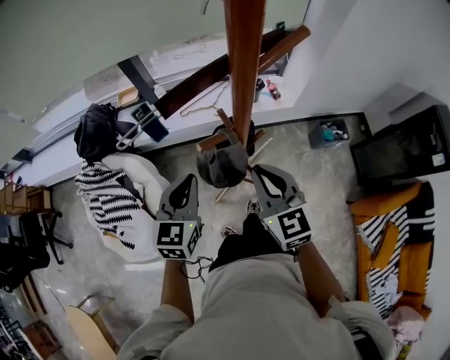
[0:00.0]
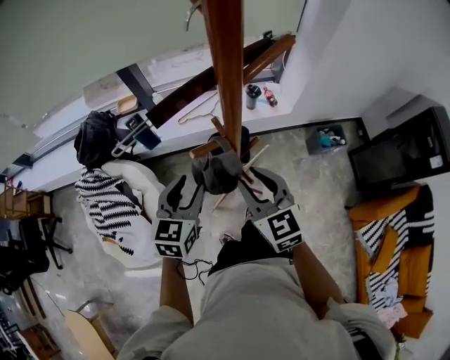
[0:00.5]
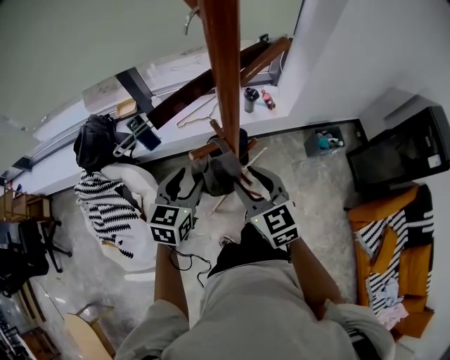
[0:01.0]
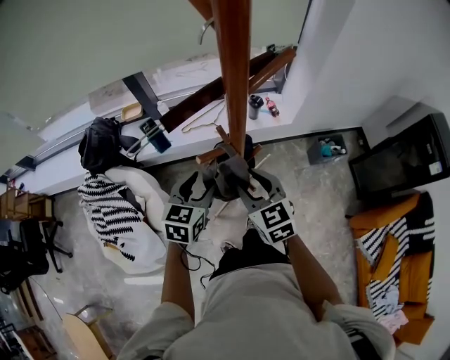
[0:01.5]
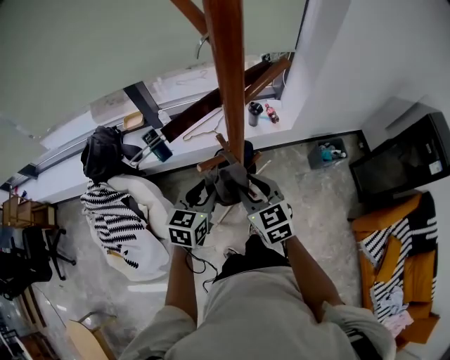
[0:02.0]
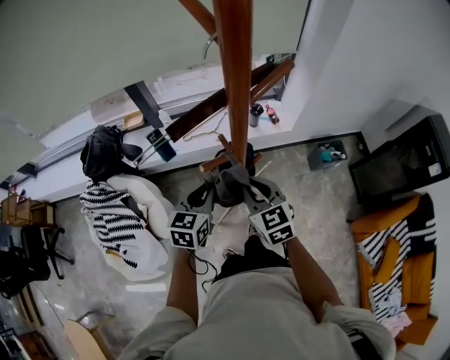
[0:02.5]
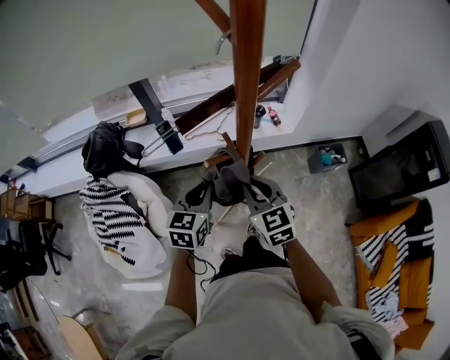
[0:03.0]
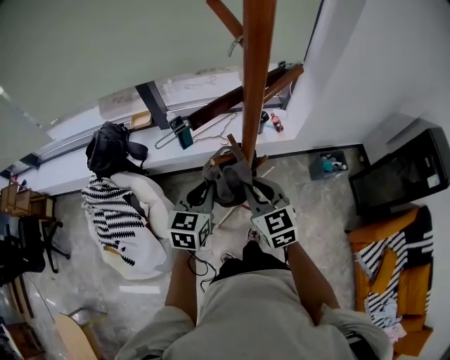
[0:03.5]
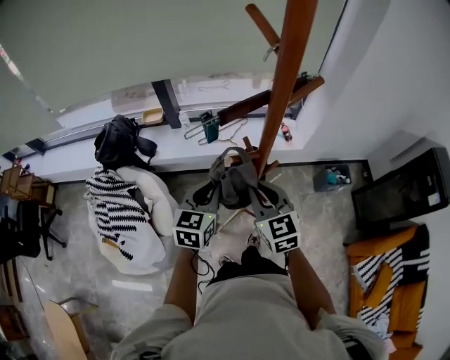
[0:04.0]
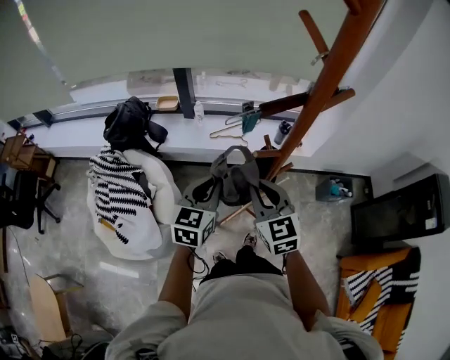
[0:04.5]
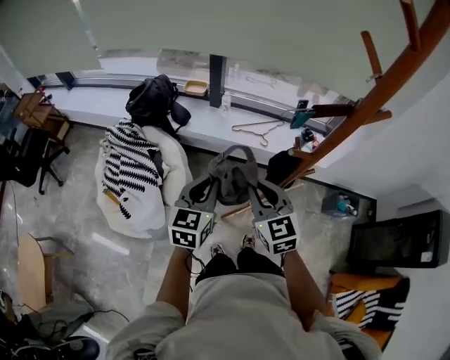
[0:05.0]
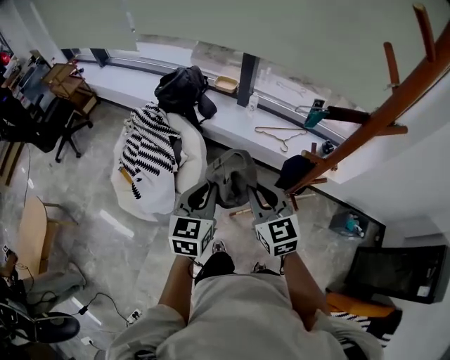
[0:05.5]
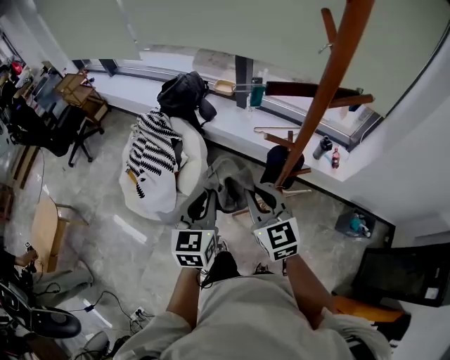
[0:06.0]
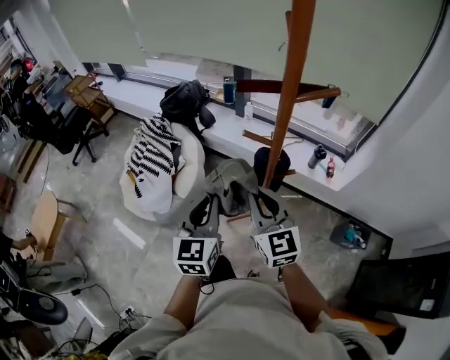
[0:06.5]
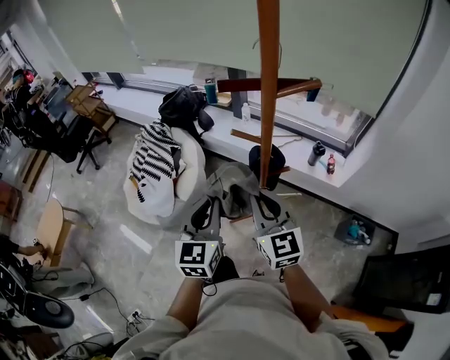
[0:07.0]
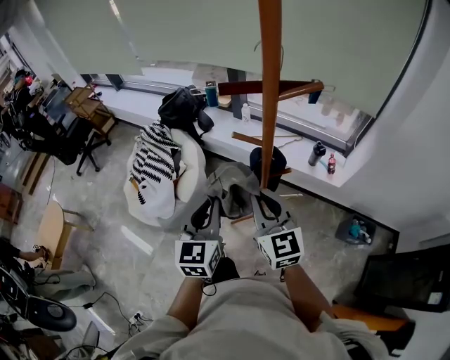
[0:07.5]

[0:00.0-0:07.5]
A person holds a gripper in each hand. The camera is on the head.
0:00.0 to 0:02.0: The left gripper shifts by approximately 5 cm, and opens. The right gripper ends up about 5 cm from where it was, and opens.
0:02.0 to 0:04.0: The right gripper is displaced upward by about 5 cm, and closes. The left gripper ends up roughly 5 cm from where it was, and closes its fingers.
0:04.0 to 0:05.5: The left gripper shifts by about 20 cm, and changes its angle by about 30 degrees; the right gripper moves some 15 cm, and swivels roughly 30 degrees.
0:05.5 to 0:07.5: Both grippers move to the right, backward and upward, roughly 20 cm.

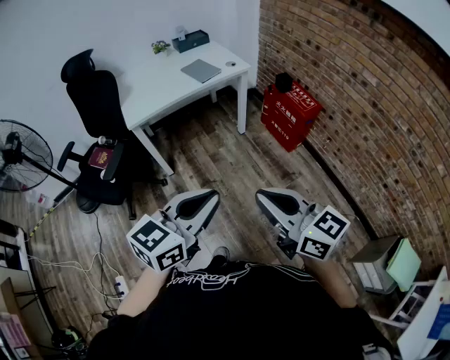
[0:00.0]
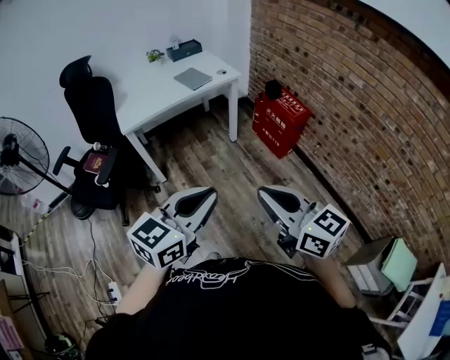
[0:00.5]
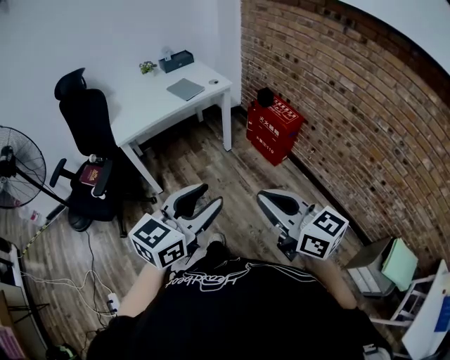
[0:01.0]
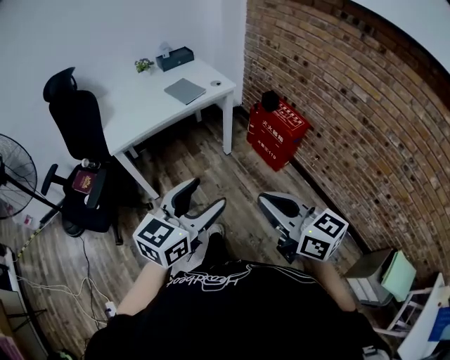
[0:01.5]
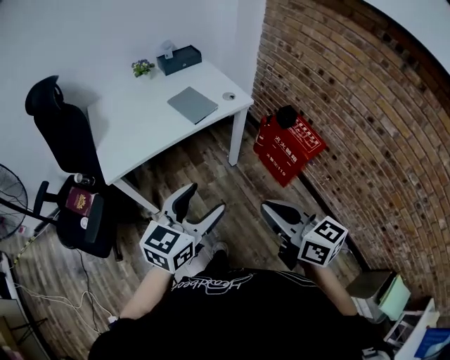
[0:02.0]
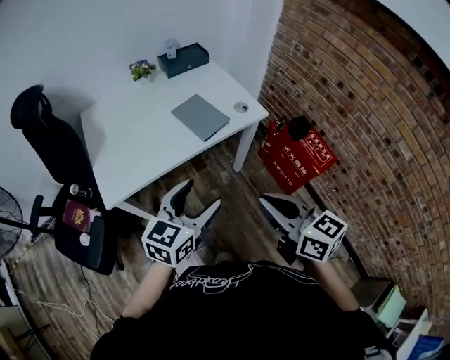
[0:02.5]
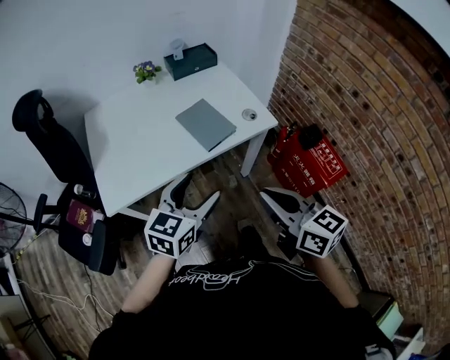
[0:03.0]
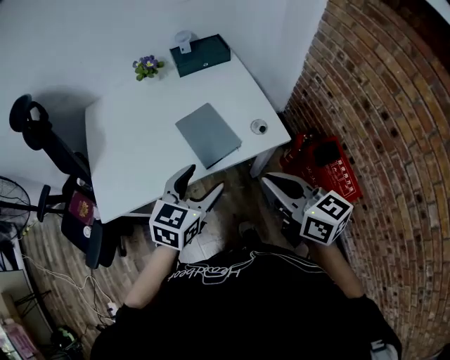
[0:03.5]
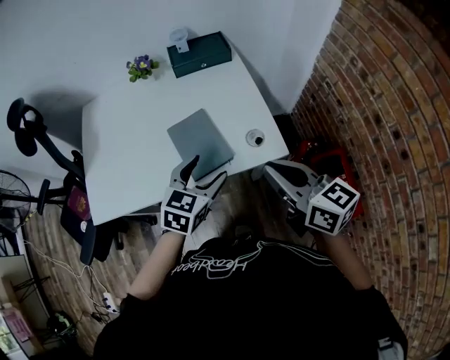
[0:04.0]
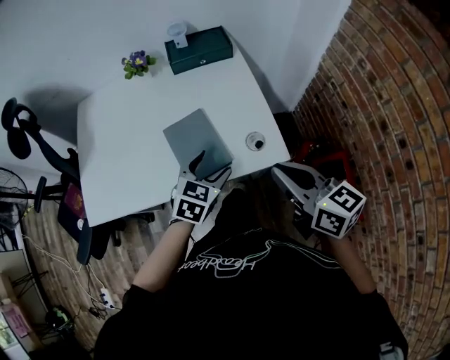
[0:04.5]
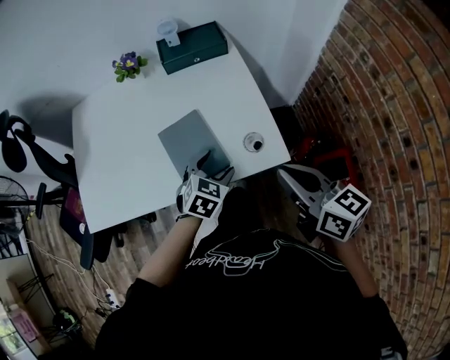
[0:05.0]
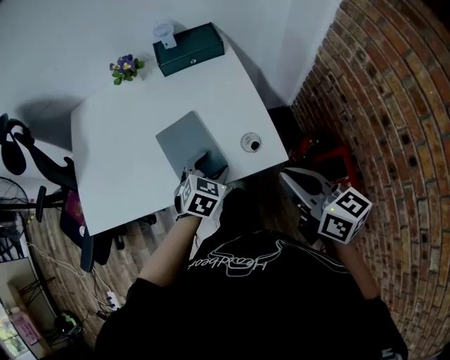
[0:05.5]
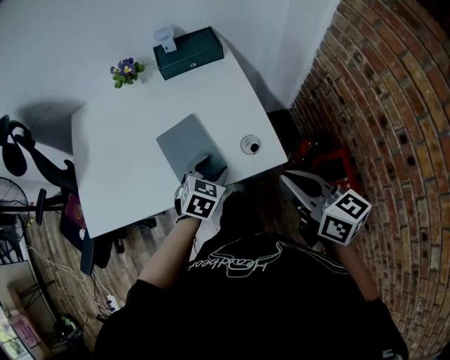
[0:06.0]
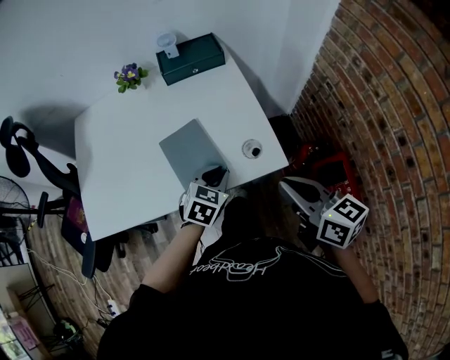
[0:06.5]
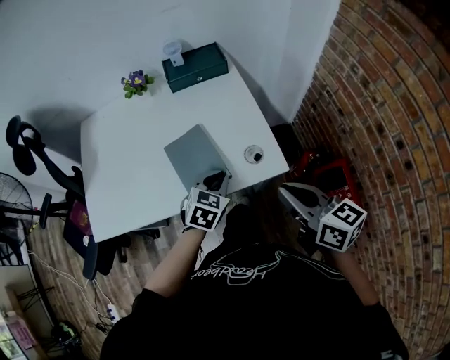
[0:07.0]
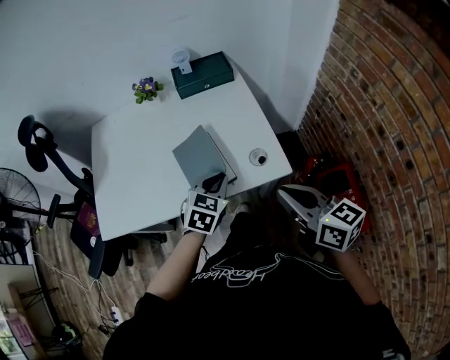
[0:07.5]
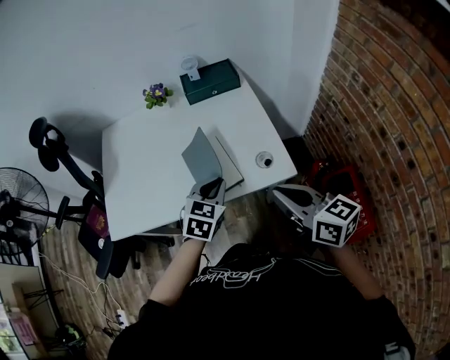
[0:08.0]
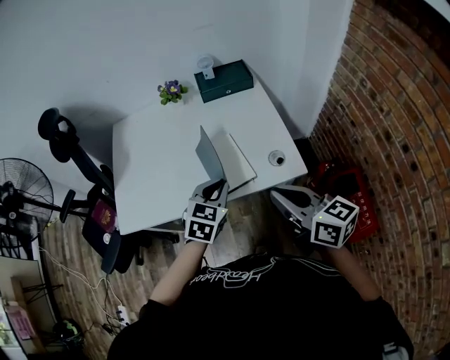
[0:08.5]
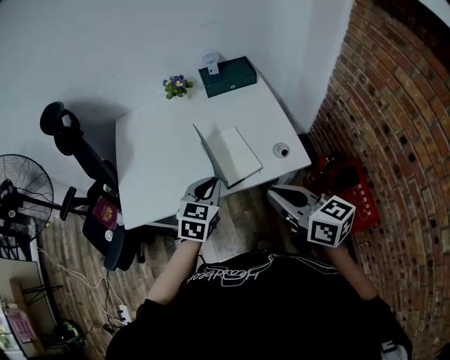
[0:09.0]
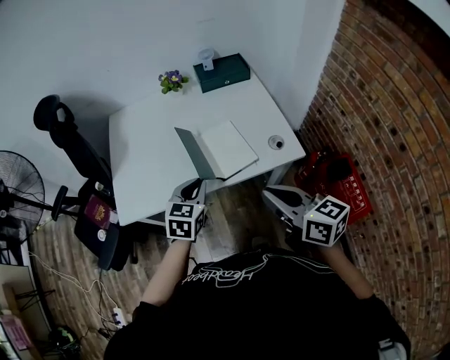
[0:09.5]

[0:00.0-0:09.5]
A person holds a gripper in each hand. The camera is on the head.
0:00.0 to 0:02.0: Both grippers travel together forward, roughly 30 cm. The left gripper opens its fingers.
0:02.0 to 0:04.0: The pair of grippers is taken forward, about 40 cm. The left gripper swivels some 30 degrees.
0:04.0 to 0:05.5: The left gripper goes roughly 10 cm downward and forward. The right gripper is displaced to the right by approximately 5 cm.
0:05.5 to 0:07.5: The left gripper travels upward by some 5 cm, and closes its fingers.
0:07.5 to 0:09.5: The two grippers go approximately 15 cm to the left.

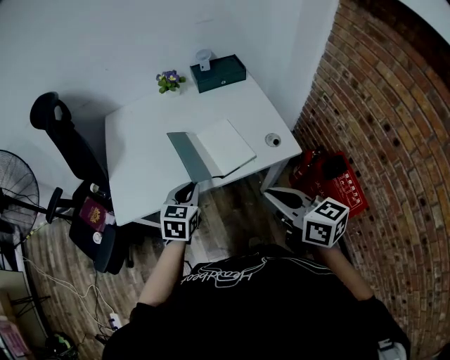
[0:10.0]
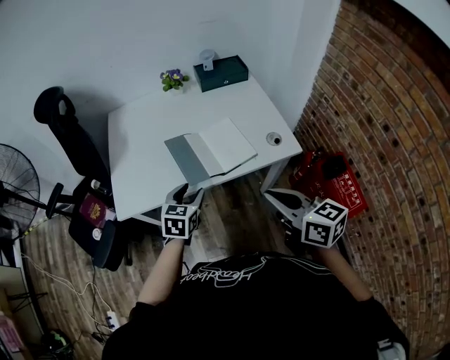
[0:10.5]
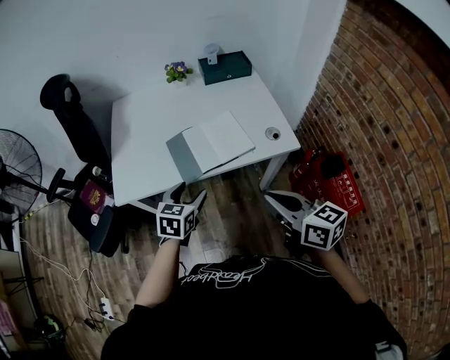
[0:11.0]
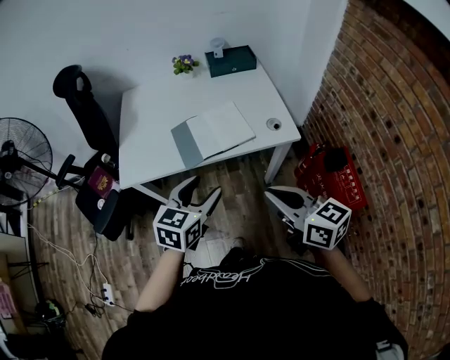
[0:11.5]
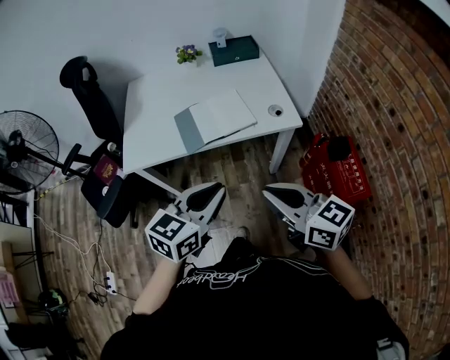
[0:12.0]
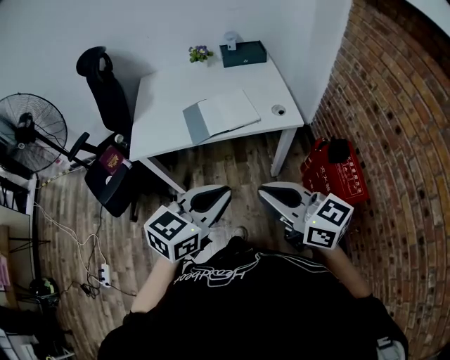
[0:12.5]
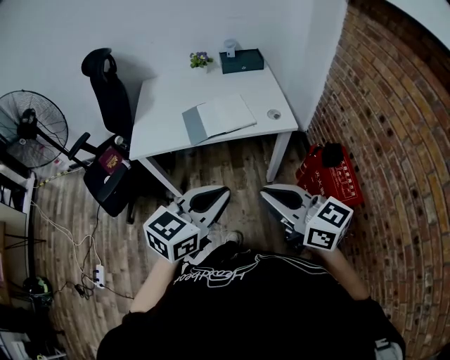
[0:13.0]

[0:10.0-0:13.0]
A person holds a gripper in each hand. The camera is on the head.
0:10.0 to 0:11.5: The right gripper travels backward by approximately 10 cm, while the left gripper heads backward and upward, covering some 15 cm, and opens its fingers.
0:11.5 to 0:13.0: The left gripper is displaced backward and upward by roughly 20 cm, and closes. Meanwhile the right gripper travels backward by roughly 10 cm.

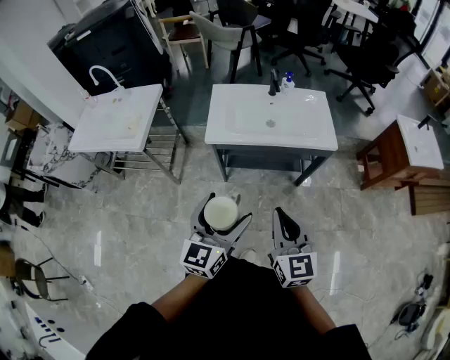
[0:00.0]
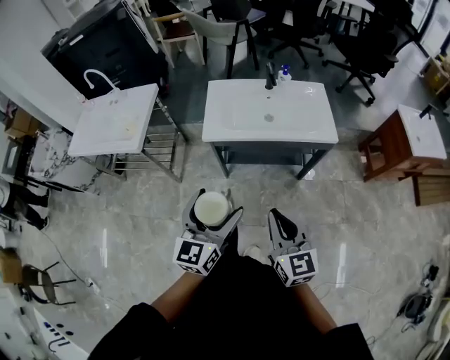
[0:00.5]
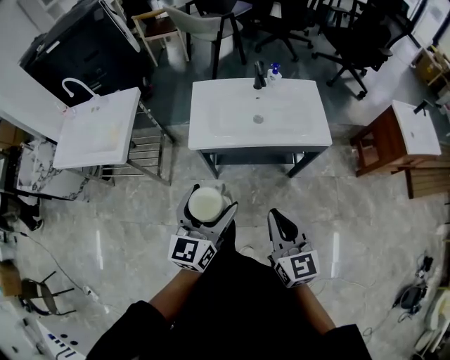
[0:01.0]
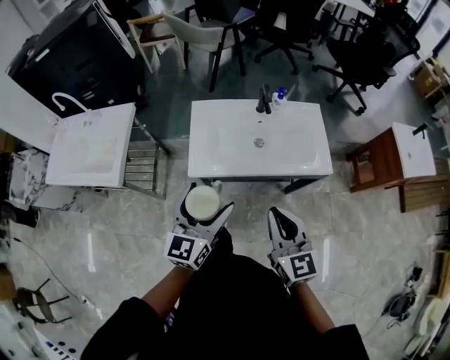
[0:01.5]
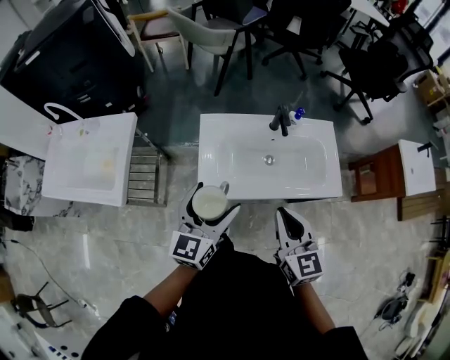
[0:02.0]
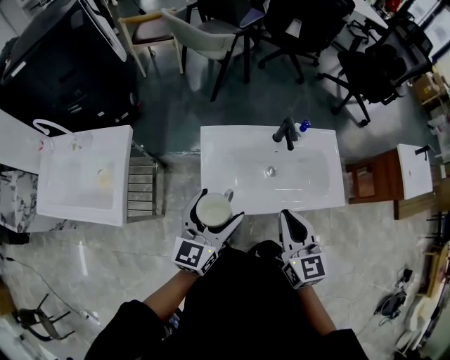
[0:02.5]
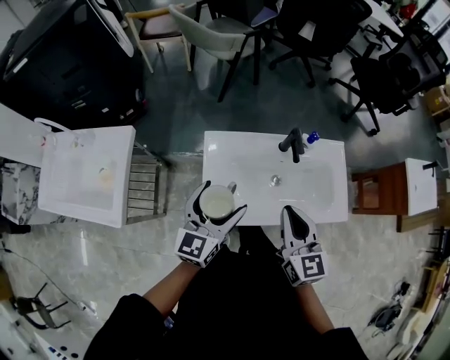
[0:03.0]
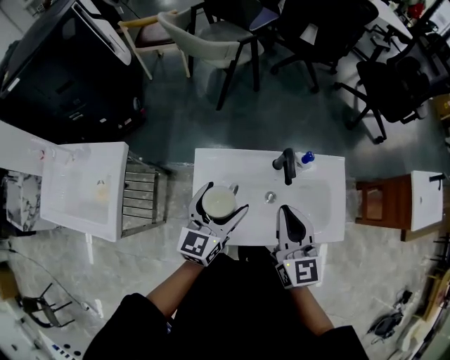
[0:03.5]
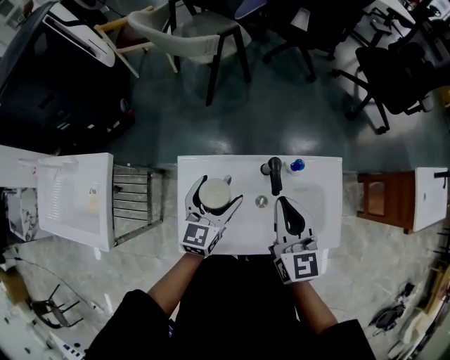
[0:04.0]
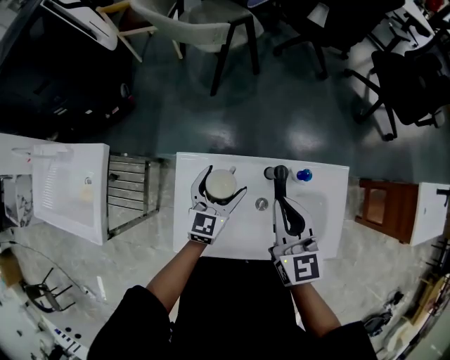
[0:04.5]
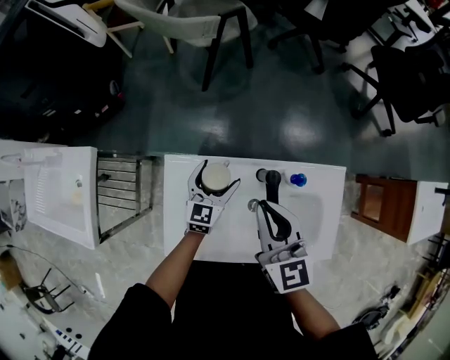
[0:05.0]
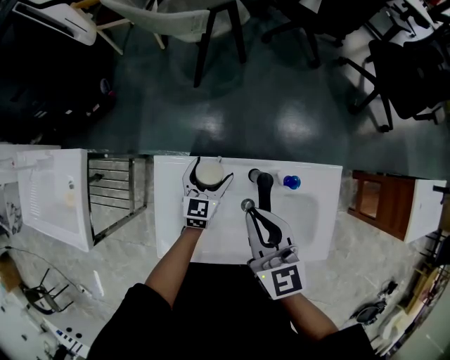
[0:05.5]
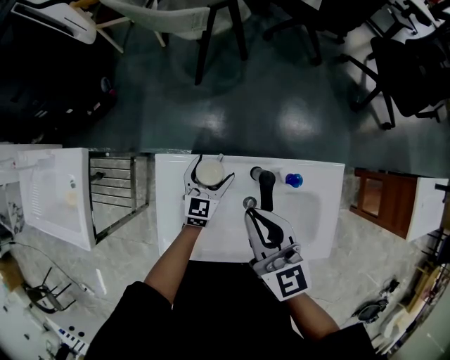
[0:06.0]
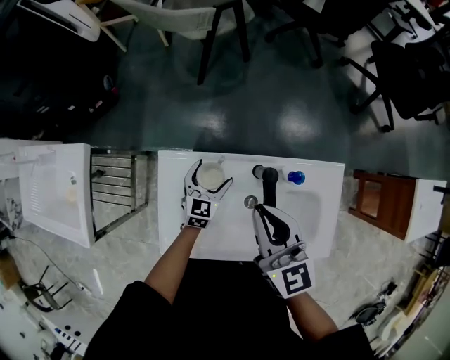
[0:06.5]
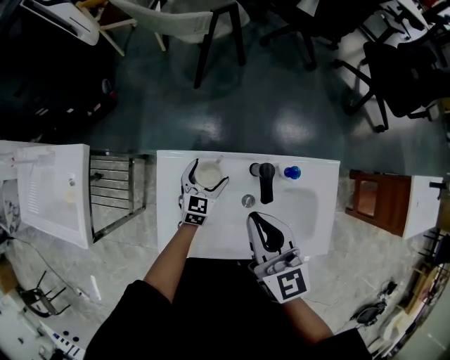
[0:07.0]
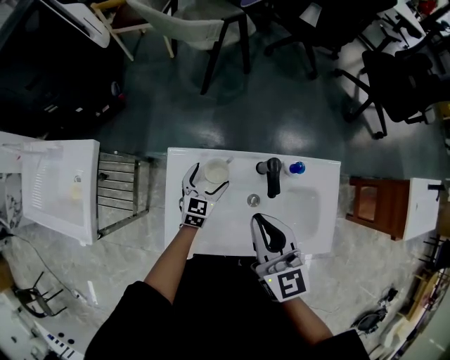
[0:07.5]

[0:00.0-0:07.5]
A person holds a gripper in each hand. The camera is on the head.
0:00.0 to 0:02.0: Both grippers move forward, about 35 cm.
0:02.0 to 0:04.0: Both grippers move forward, some 30 cm.
0:04.0 to 0:05.5: The left gripper travels downward and forward by some 20 cm. The right gripper is displaced forward and downward by roughly 10 cm.
0:05.5 to 0:07.5: The two grippers go roughly 5 cm backward.
